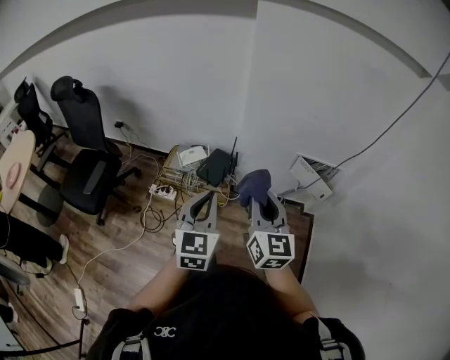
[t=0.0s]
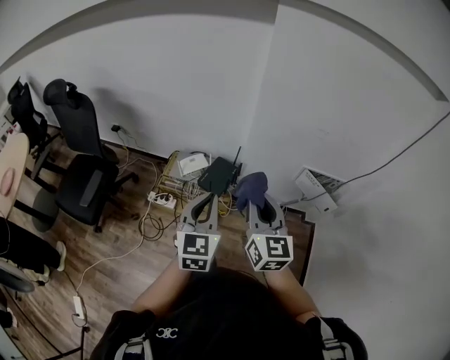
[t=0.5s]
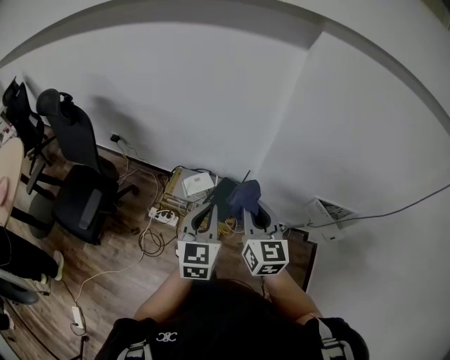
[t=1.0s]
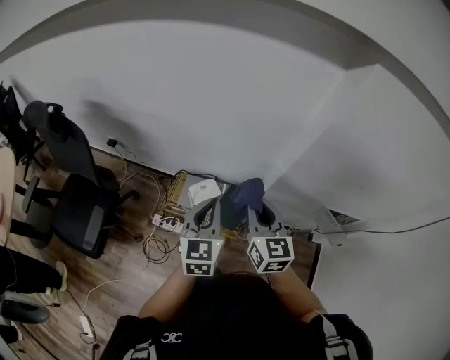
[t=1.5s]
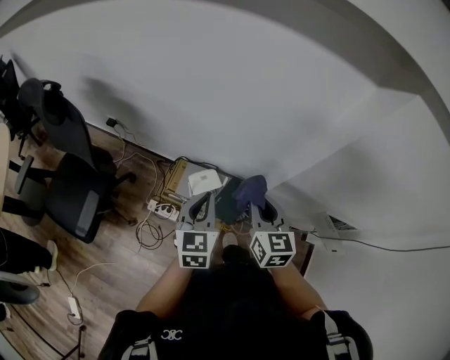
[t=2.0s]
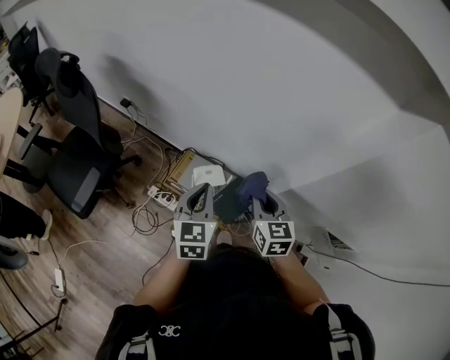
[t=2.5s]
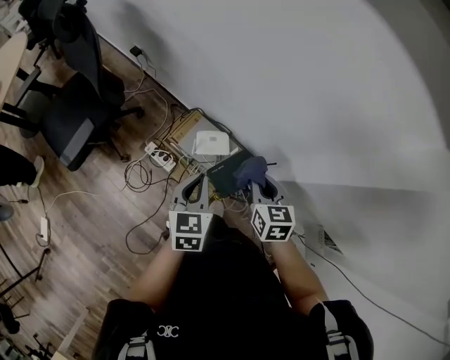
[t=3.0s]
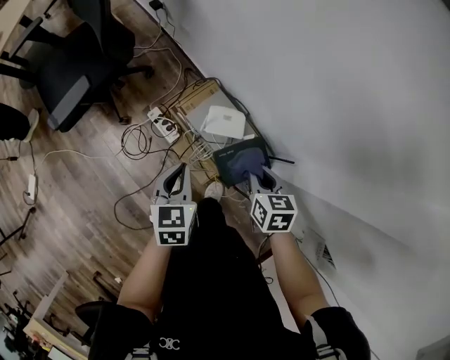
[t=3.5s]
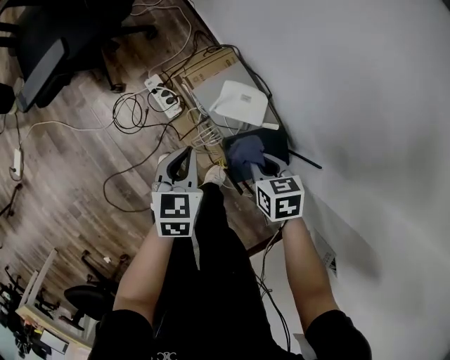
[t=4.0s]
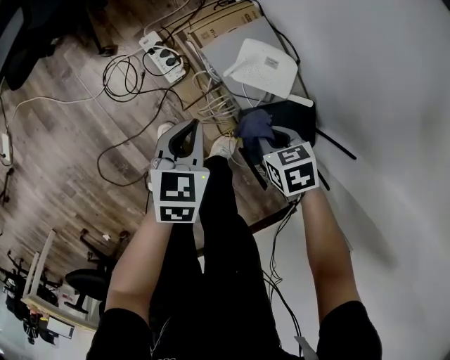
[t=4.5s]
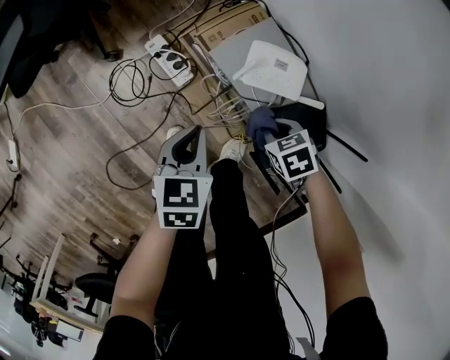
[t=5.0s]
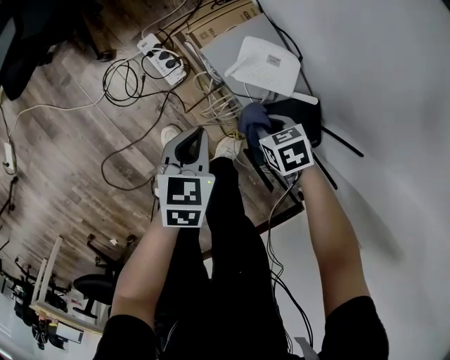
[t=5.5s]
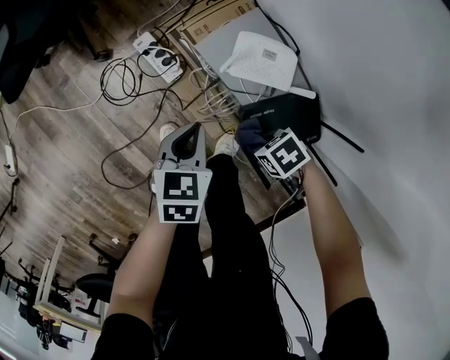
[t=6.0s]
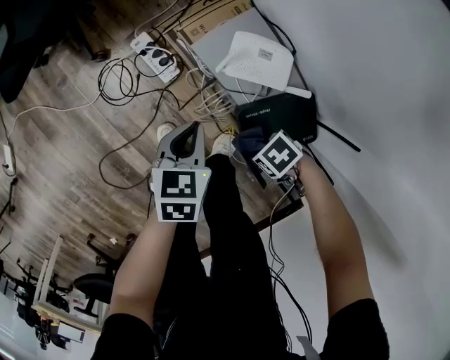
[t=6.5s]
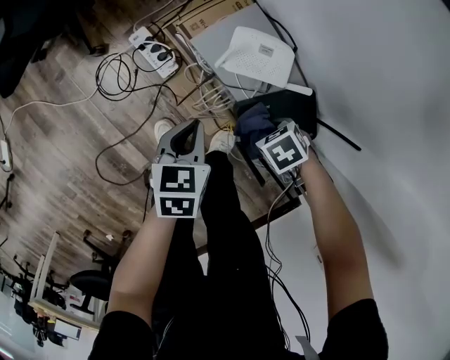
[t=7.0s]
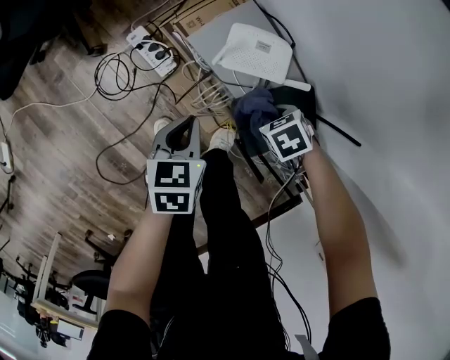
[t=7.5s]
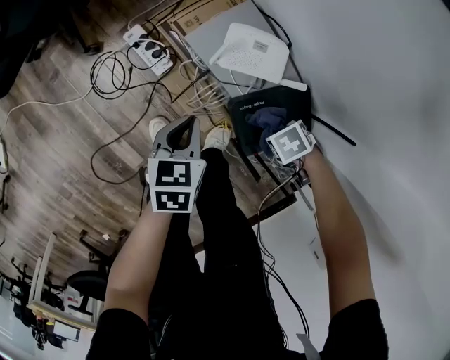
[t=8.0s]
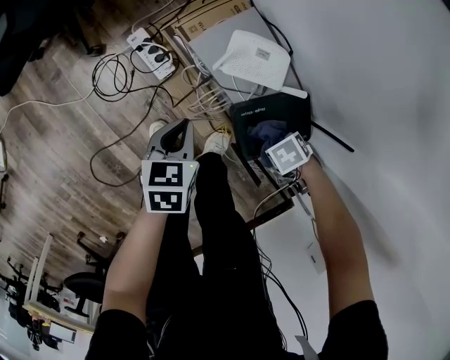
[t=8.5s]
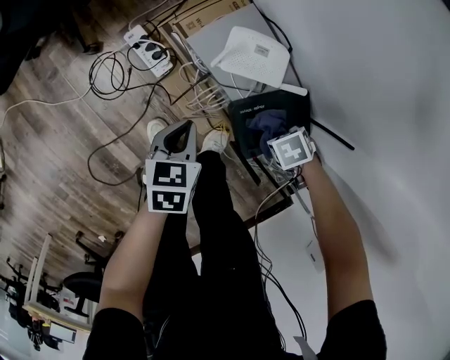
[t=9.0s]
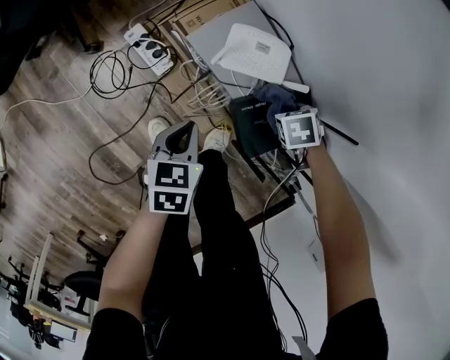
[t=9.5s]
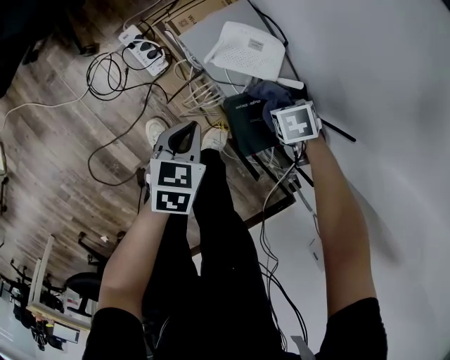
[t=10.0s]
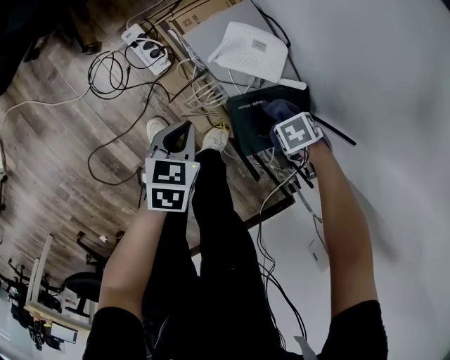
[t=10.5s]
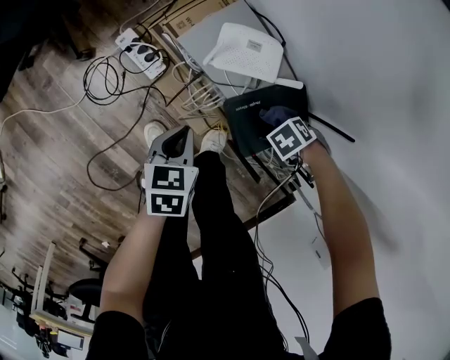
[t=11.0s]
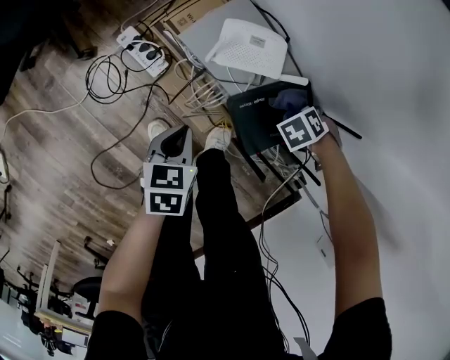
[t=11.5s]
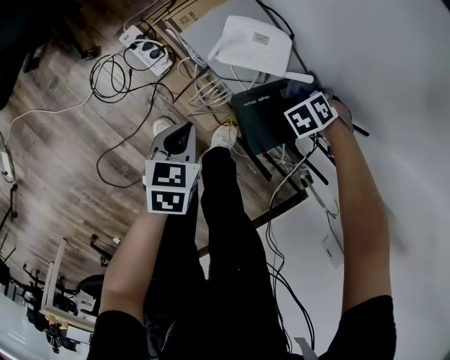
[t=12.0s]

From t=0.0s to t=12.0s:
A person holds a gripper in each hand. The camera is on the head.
From t=0.0s to t=2.0s: Both grippers are carried forward and to the left, approximately 40 cm. The right gripper changes its angle by approximately 20 degrees.
From t=2.0s to t=4.0s: Both grippers move downward, about 40 cm. The right gripper points its fingers approximately 40 degrees further downward, while the left gripper changes its angle by approximately 40 degrees.
From t=4.0s to t=6.0s: Both grippers travel together downward, approximately 15 cm. The right gripper changes its angle by about 40 degrees.
From t=6.0s to t=8.0s: The right gripper shifts by approximately 10 cm, and rotates approximately 20 degrees.
From t=8.0s to t=10.0s: The right gripper shifts by some 10 cm.
From t=10.0s to t=12.0s: The right gripper moves approximately 10 cm, and changes its angle by about 30 degrees.

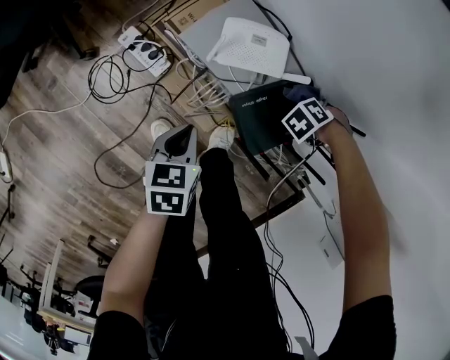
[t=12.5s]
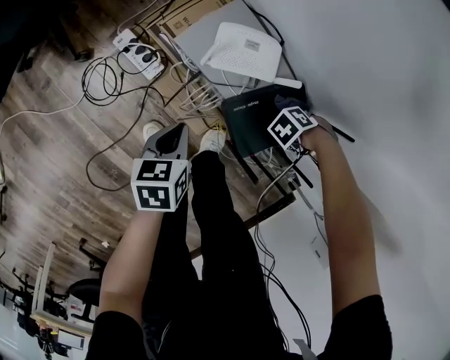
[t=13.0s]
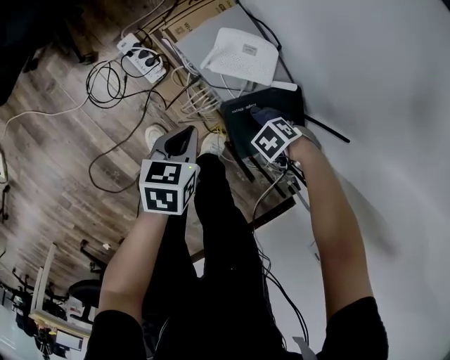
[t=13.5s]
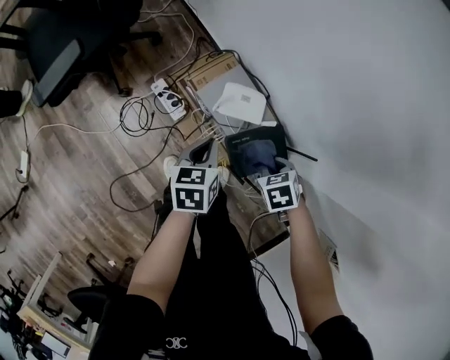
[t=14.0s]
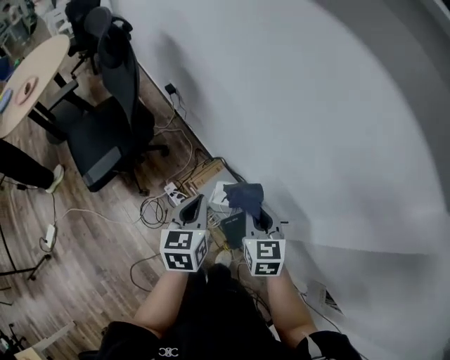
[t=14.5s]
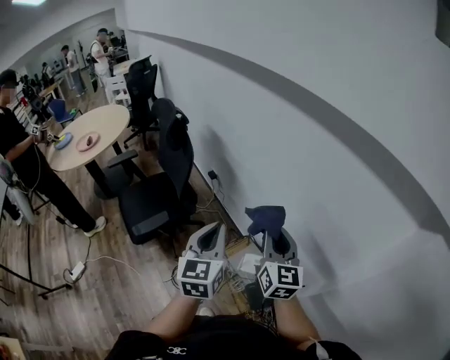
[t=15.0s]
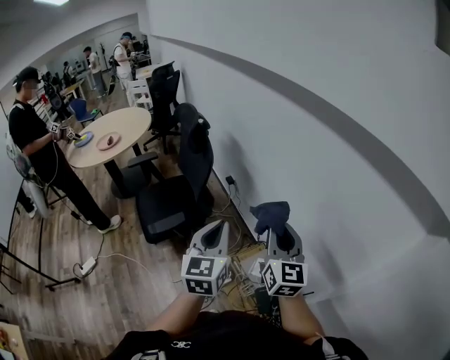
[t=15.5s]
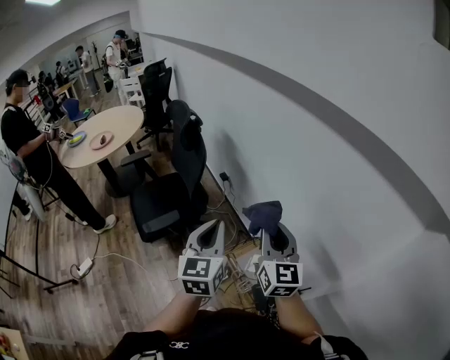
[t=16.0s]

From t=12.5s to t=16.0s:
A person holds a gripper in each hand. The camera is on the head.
From t=12.5s to t=14.5s: Both grippers travel together upward, some 50 cm. The right gripper changes its angle by some 90 degrees. The left gripper swivels approximately 30 degrees.
From t=14.5s to t=16.0s: The grippers both shift upward by about 25 cm. The right gripper angles its fingers upward, by some 40 degrees; the left gripper changes its angle by roughly 30 degrees.

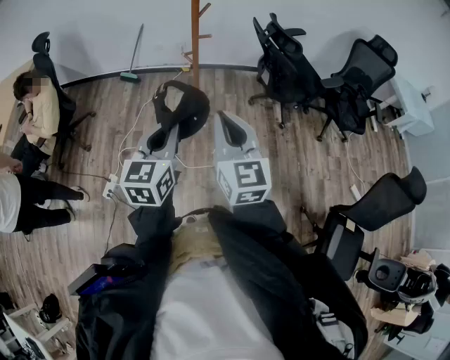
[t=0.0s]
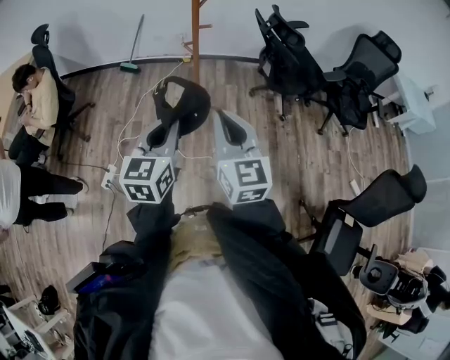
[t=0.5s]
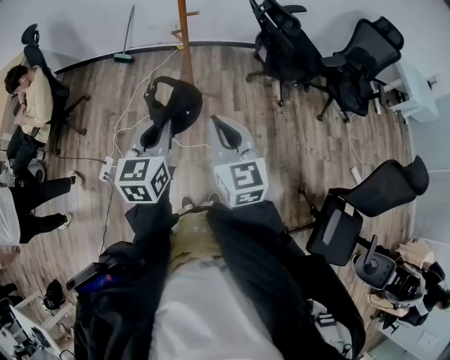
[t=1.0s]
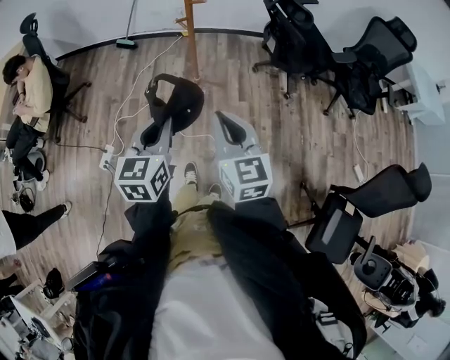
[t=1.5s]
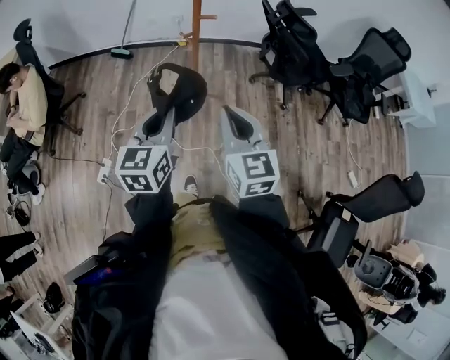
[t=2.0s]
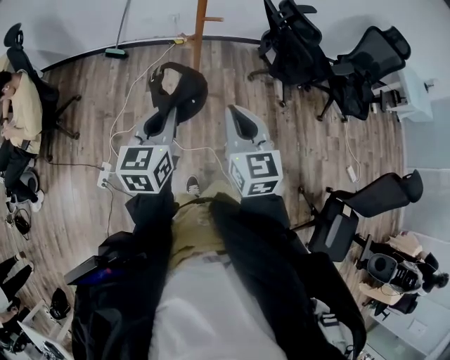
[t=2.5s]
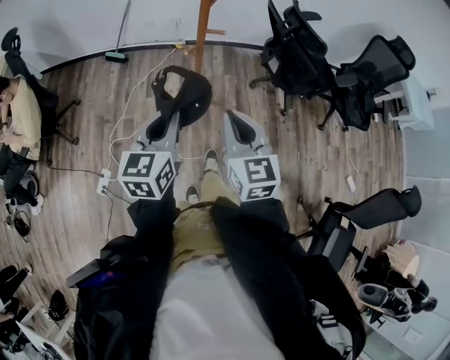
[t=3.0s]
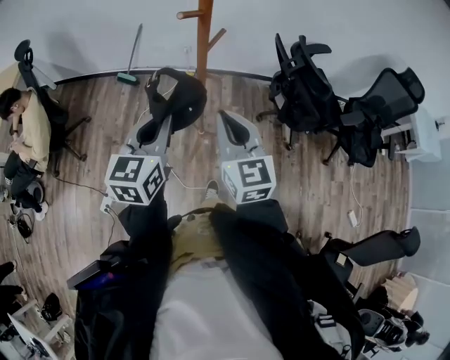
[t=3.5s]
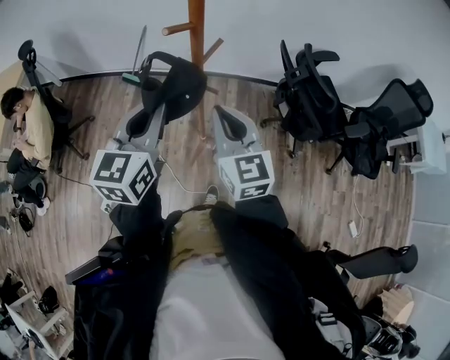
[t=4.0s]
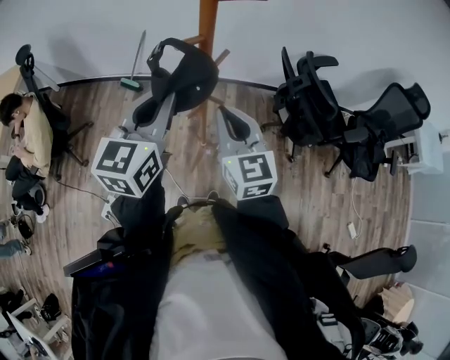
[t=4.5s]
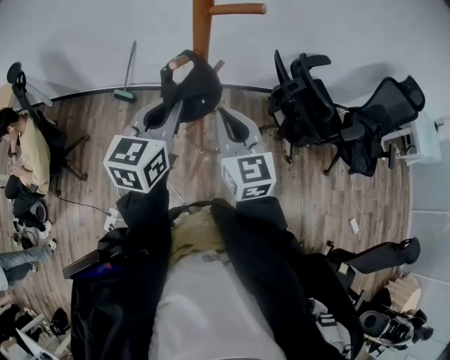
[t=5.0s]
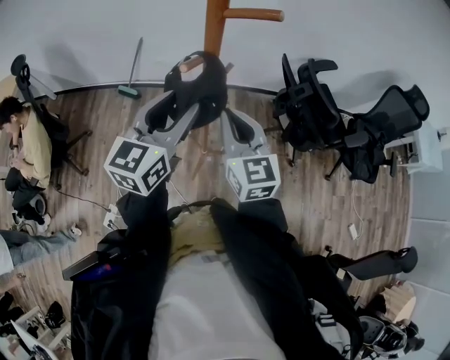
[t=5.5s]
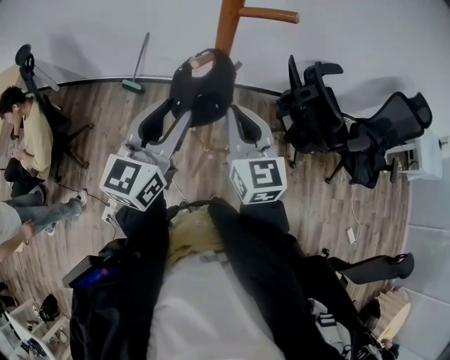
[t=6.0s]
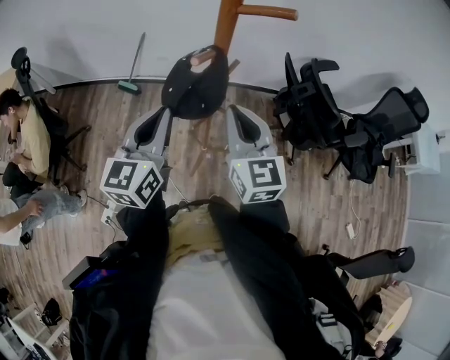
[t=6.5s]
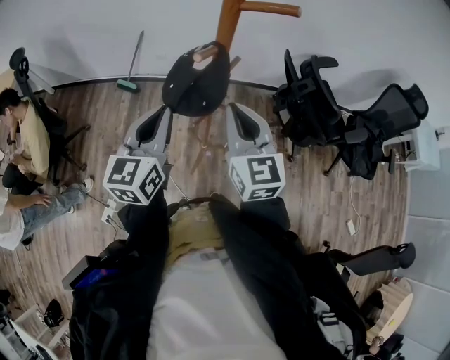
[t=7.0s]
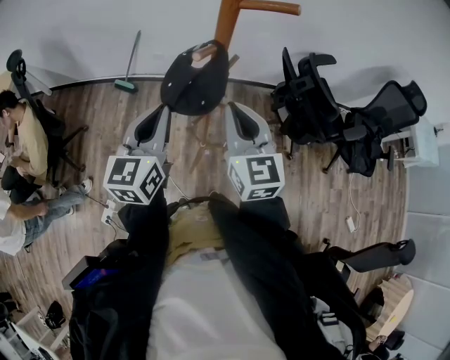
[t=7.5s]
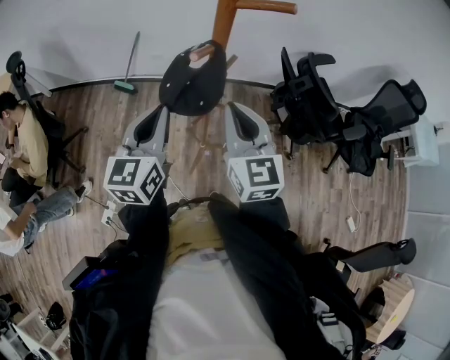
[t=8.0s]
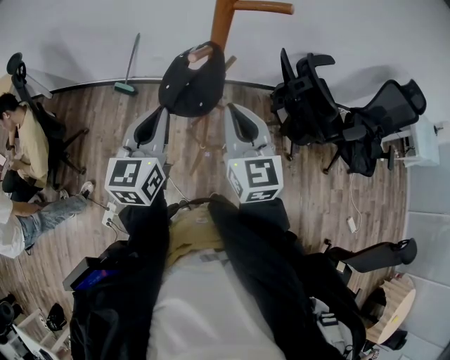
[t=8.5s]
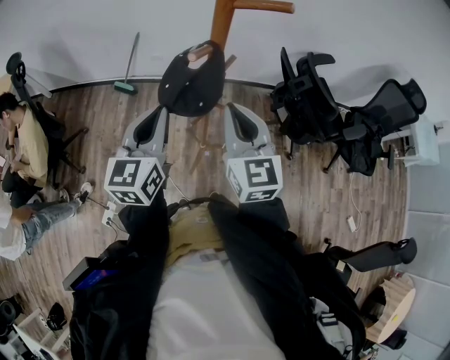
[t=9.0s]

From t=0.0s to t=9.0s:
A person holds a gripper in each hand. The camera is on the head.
From t=0.0s to t=2.0s: The right gripper goes approximately 10 cm forward and downward. Meanwhile the left gripper goes roughly 10 cm forward.
From t=2.0s to t=4.5s: The right gripper moves forward, approximately 30 cm, while the left gripper heads forward and upward, covering about 35 cm.
From t=4.5s to t=7.0s: The left gripper is displaced downward by some 5 cm, and opens, then closes once more.
From t=7.0s to t=9.0s: Both grippers stay put.

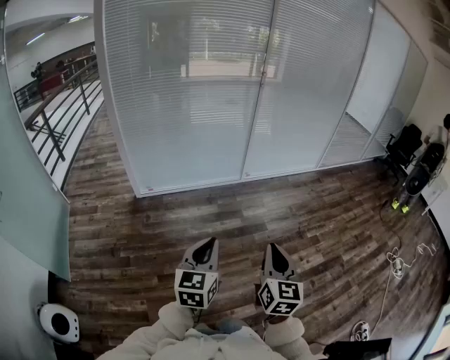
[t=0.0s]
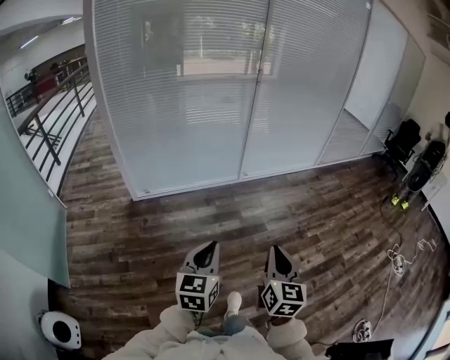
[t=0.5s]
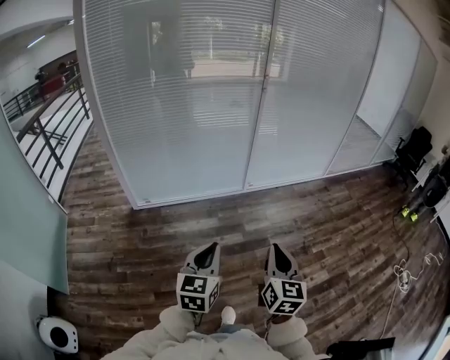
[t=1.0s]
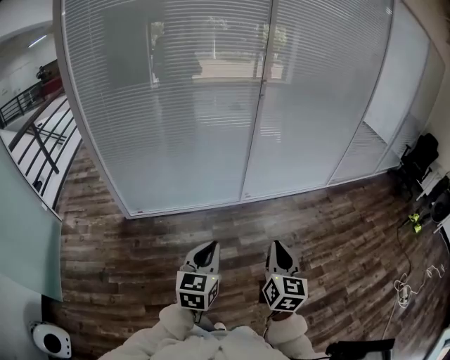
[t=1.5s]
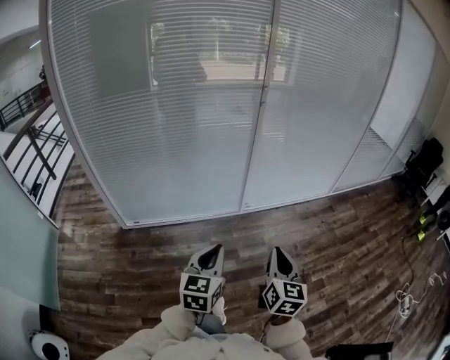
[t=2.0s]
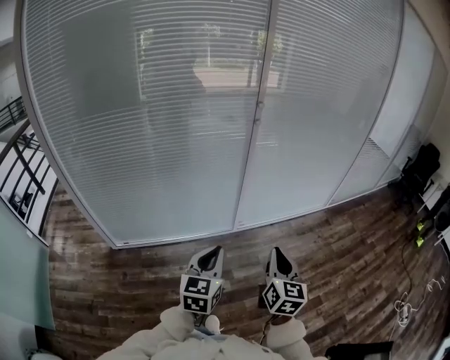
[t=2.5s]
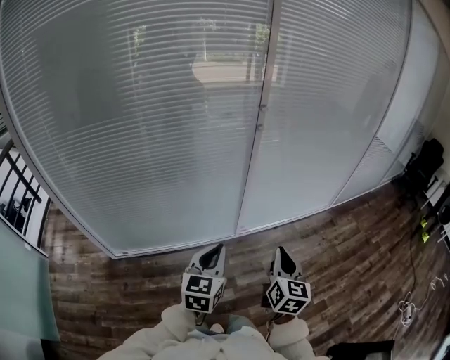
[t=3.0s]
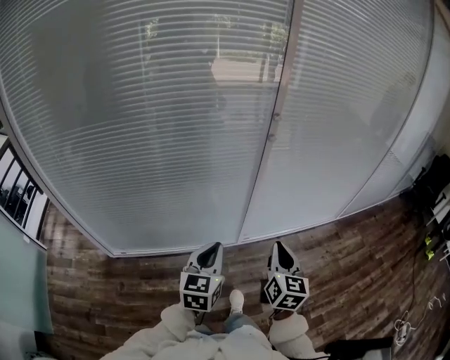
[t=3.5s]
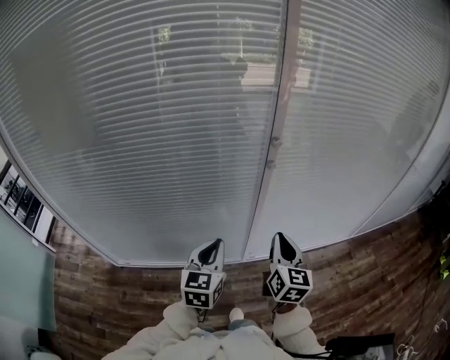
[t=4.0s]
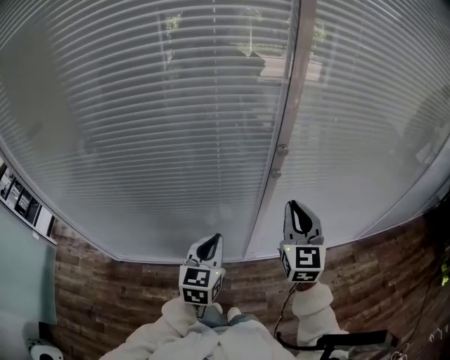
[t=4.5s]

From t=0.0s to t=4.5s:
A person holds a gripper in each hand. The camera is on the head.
From t=0.0s to t=2.0s: Both grippers are carried forward, about 50 cm.
From t=2.0s to t=4.5s: Both grippers are carried forward, about 60 cm. The right gripper swivels about 30 degrees.
